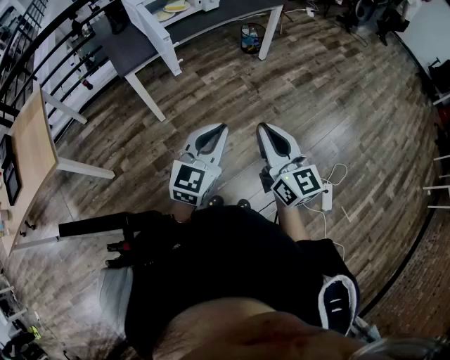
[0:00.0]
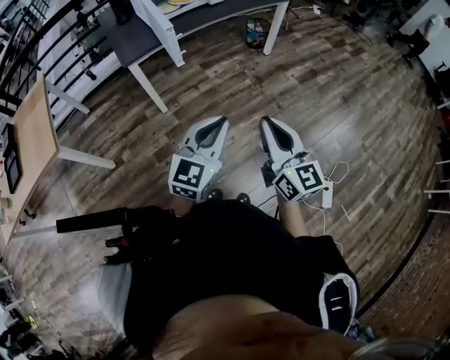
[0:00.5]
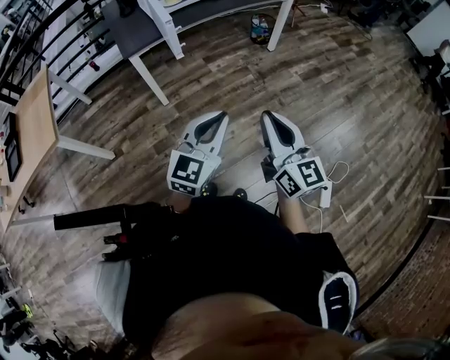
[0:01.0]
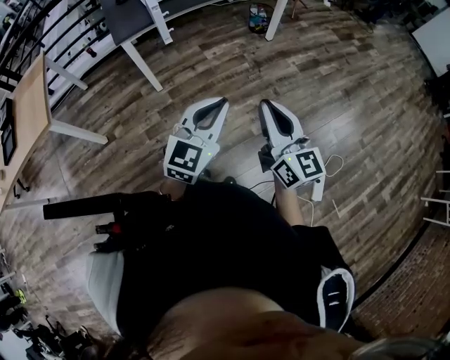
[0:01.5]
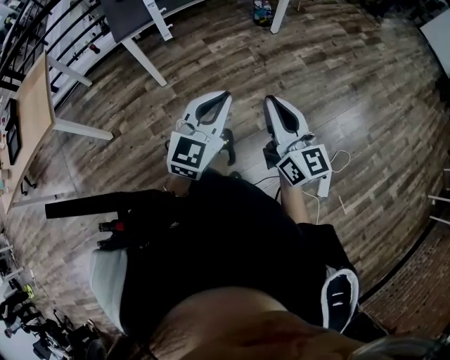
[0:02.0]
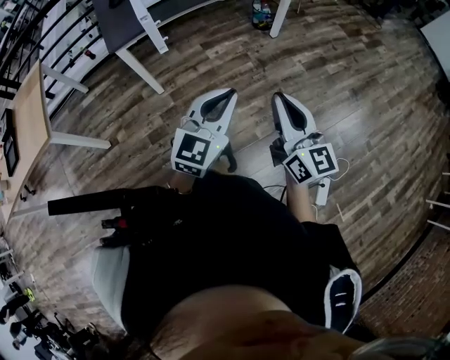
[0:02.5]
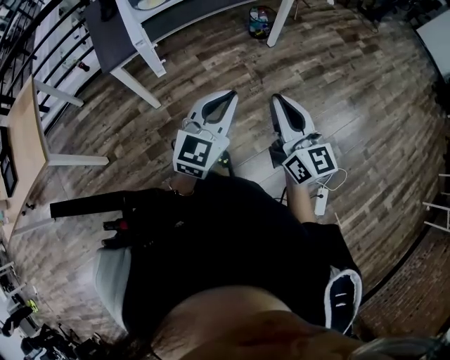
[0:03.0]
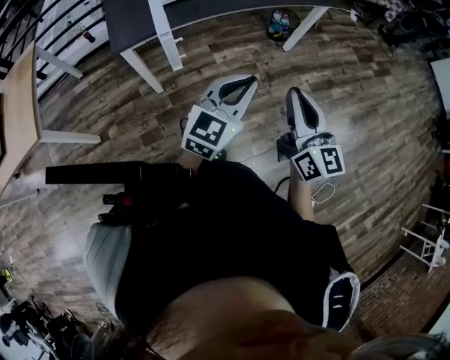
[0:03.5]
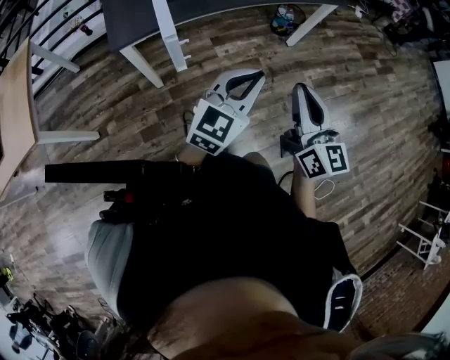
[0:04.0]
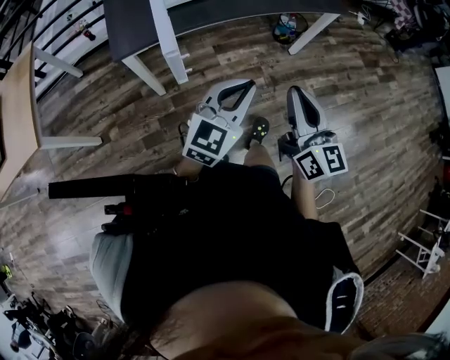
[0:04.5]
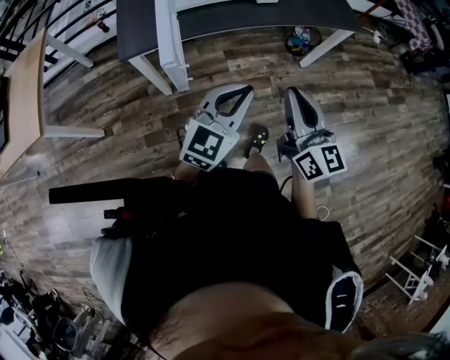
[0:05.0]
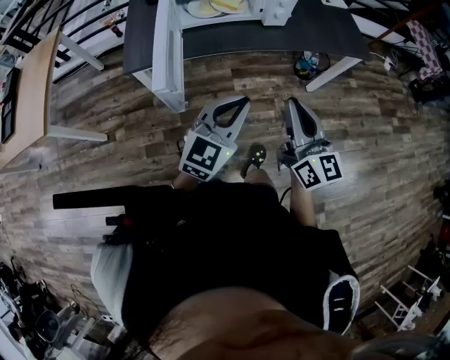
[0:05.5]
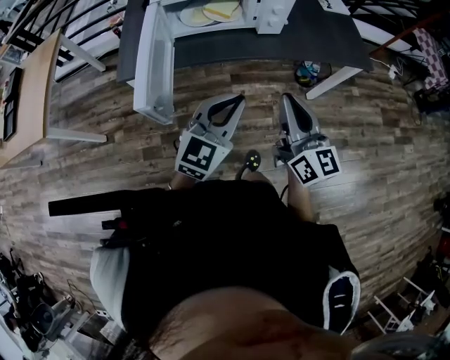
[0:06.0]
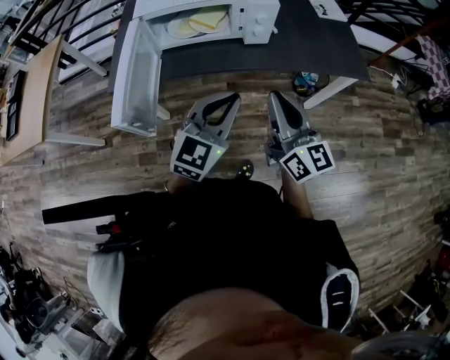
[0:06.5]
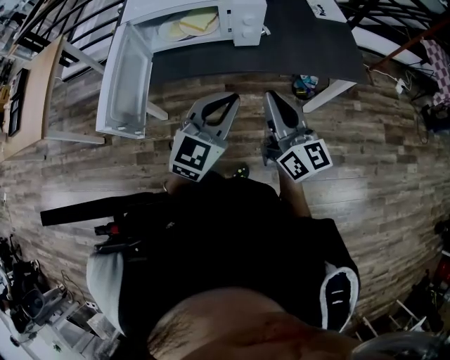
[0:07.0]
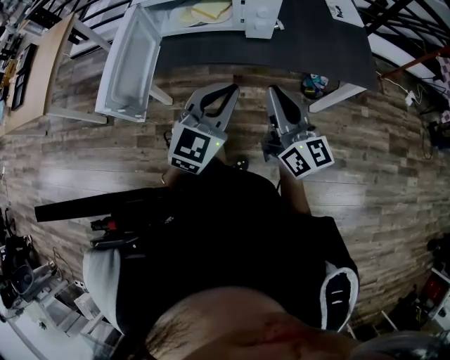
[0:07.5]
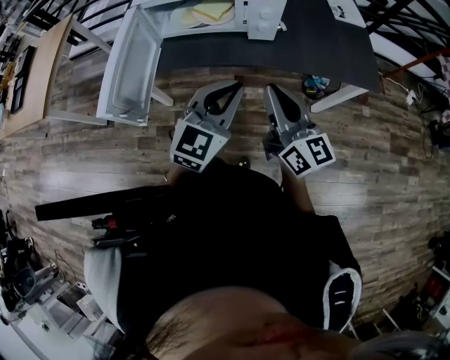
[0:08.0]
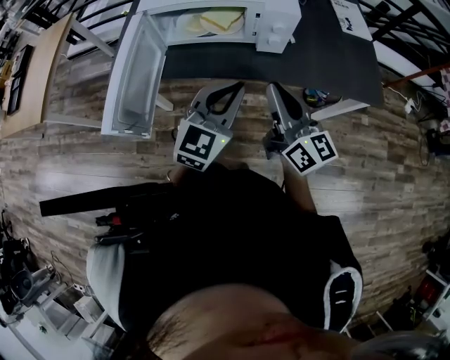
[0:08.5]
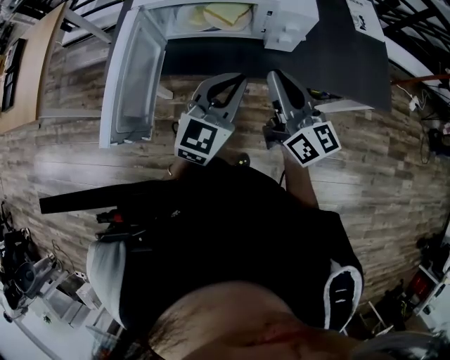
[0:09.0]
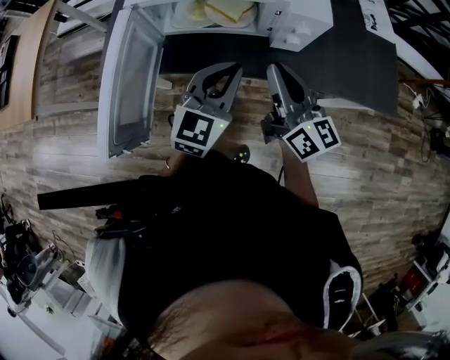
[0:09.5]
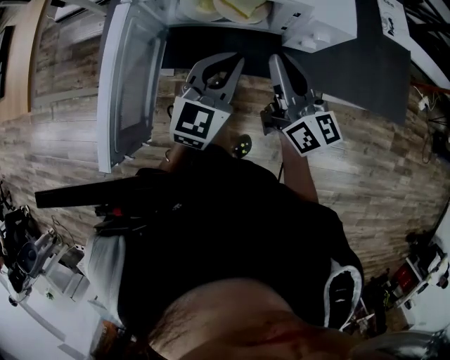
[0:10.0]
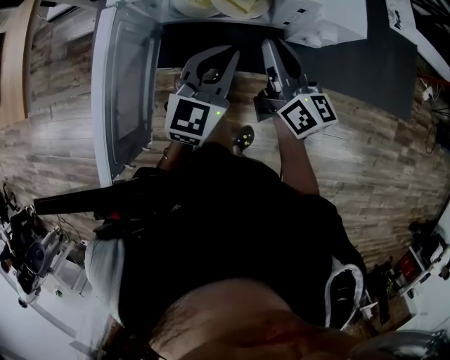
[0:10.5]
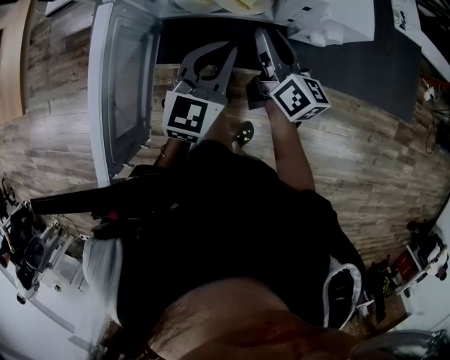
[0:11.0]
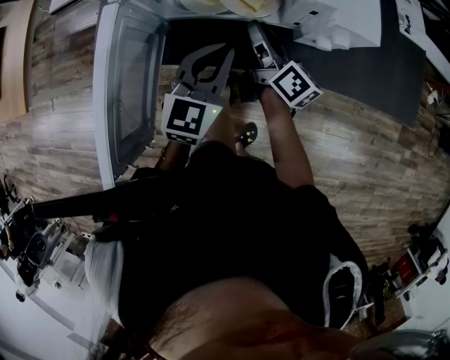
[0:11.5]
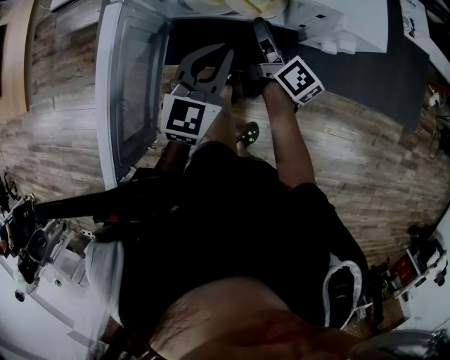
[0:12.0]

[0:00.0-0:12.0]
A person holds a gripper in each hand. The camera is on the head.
0:00.0 to 0:02.0: The grippers both shift to the right by some 10 cm.
0:02.0 to 0:04.0: The two grippers go some 30 cm forward.
0:04.0 to 0:06.0: Both grippers move forward, some 20 cm. The right gripper swivels approximately 20 degrees, while the left gripper turns by some 20 degrees.
0:06.0 to 0:08.0: The left gripper shifts about 15 cm to the right and forward. Meanwhile the right gripper moves forward and to the right, roughly 10 cm.
0:08.0 to 0:10.0: The right gripper travels forward by roughly 20 cm. The left gripper is displaced forward and to the left by some 20 cm.
0:10.0 to 0:12.0: The left gripper changes place by approximately 5 cm, while the right gripper moves downward and forward, about 15 cm, turns by approximately 40 degrees, and opens its fingers.

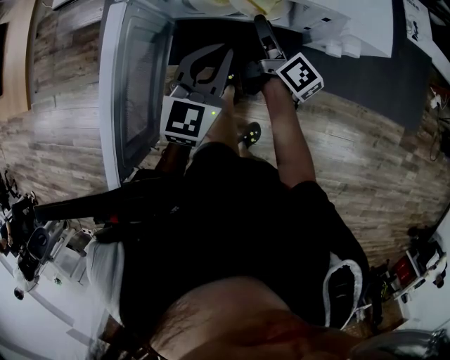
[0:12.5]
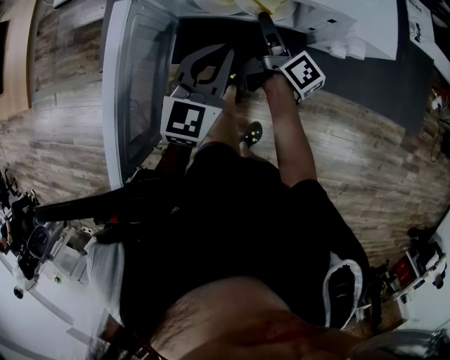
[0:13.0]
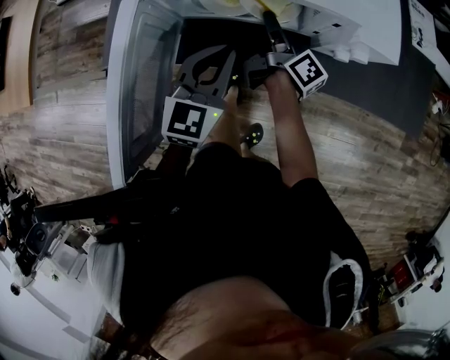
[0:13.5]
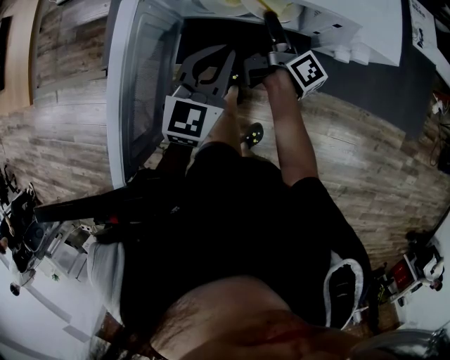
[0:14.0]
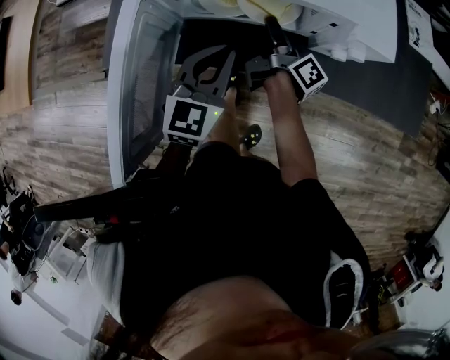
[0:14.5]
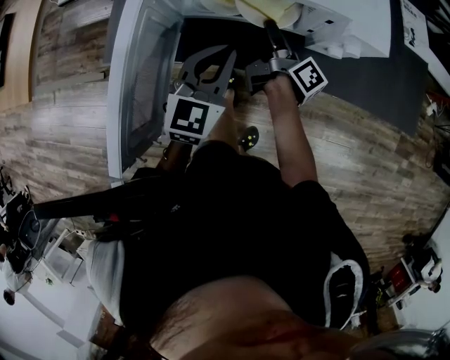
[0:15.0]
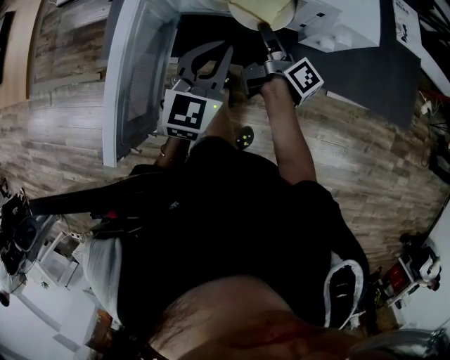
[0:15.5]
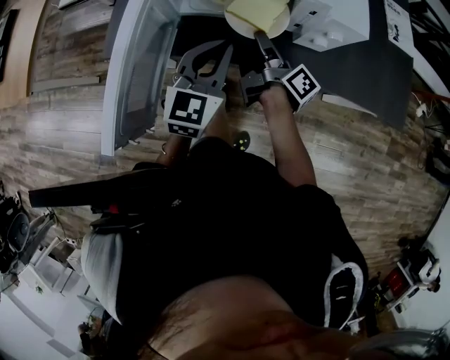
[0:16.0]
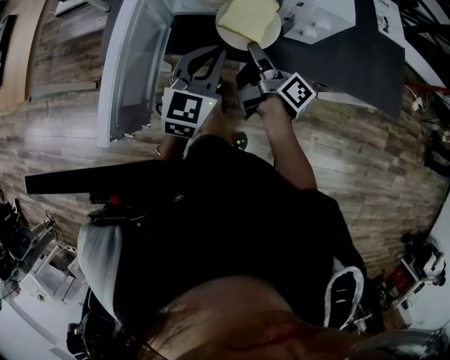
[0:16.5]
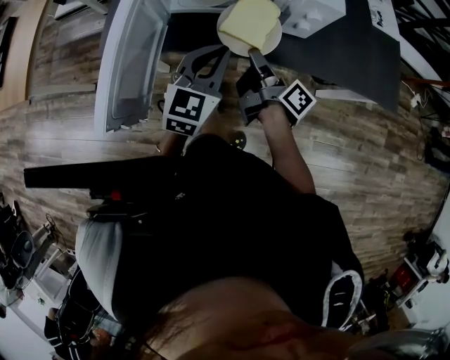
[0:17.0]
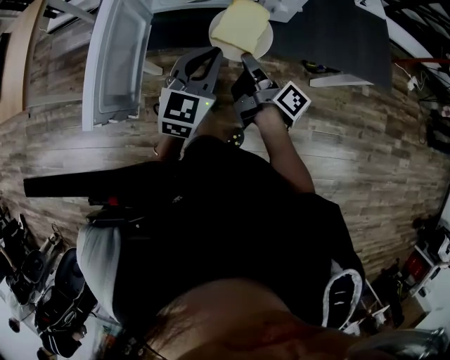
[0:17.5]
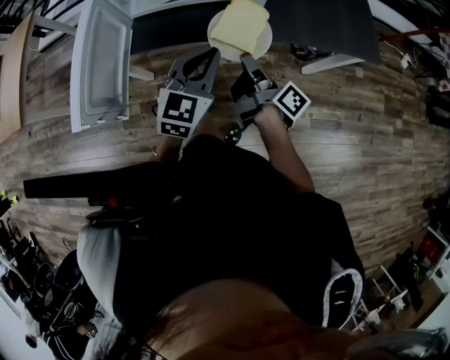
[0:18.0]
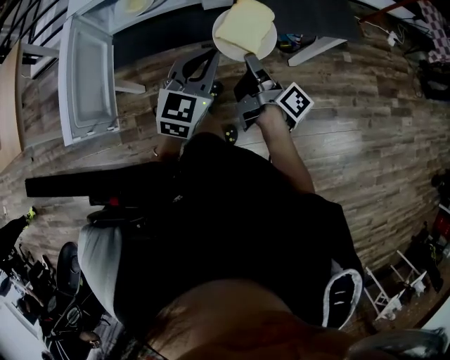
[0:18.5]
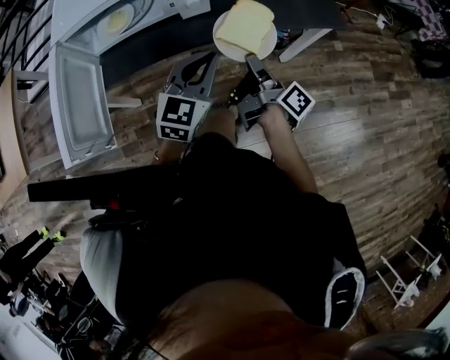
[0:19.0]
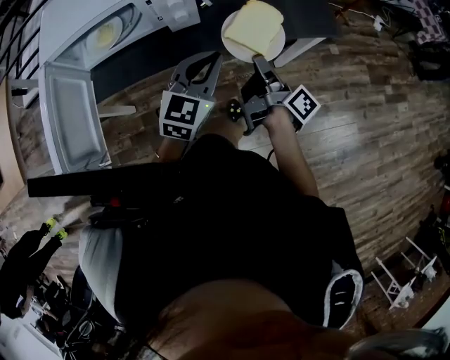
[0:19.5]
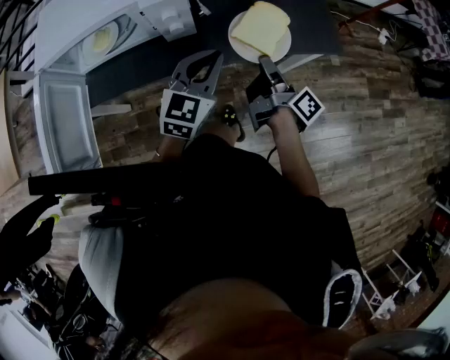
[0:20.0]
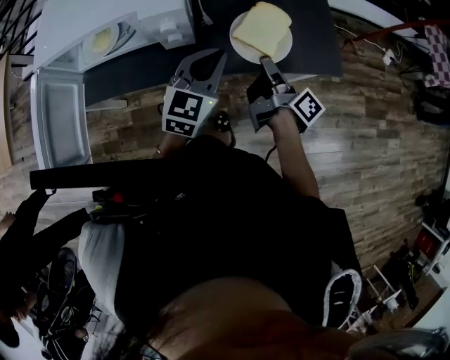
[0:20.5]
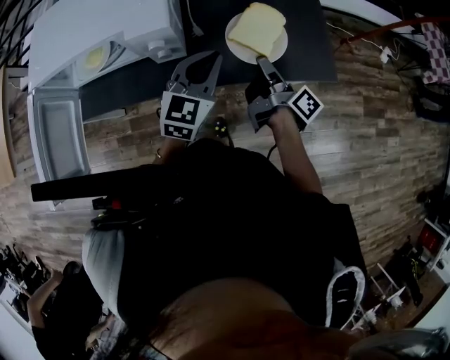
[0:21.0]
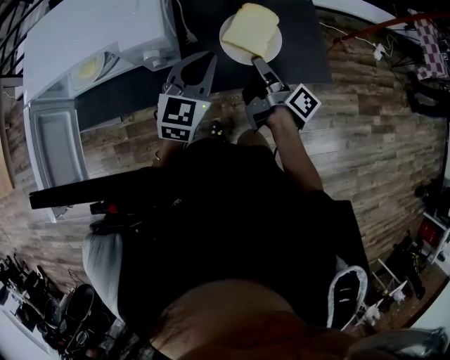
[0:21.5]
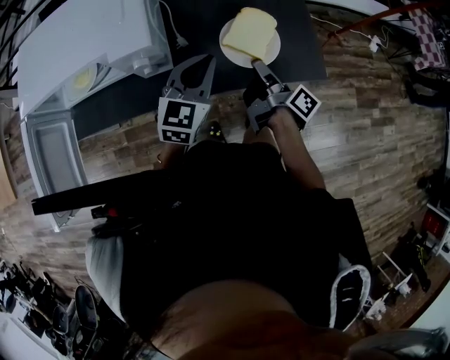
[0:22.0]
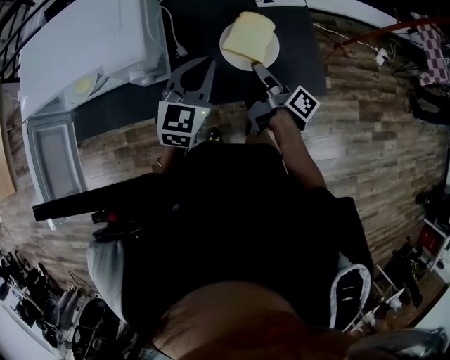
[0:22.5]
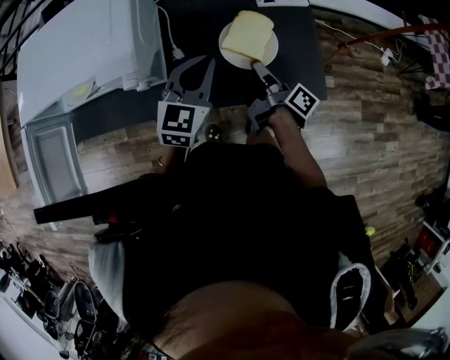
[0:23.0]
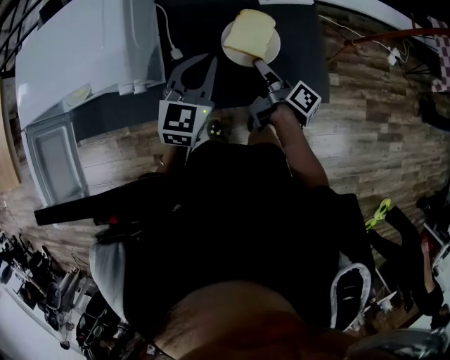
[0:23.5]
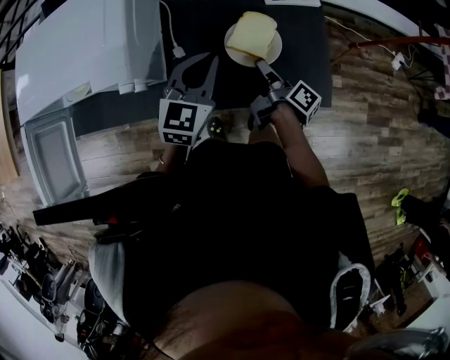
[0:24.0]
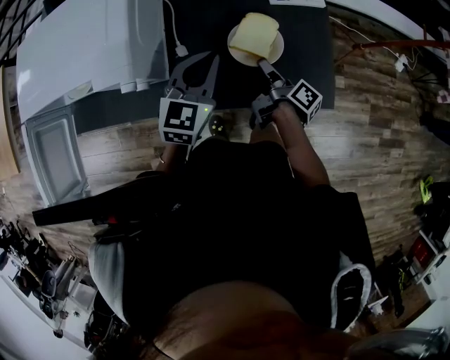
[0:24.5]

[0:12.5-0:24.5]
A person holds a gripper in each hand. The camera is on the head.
0:12.5 to 0:14.5: The right gripper closes its fingers.
0:14.5 to 0:16.5: The right gripper goes approximately 10 cm backward. Meanwhile the left gripper moves backward, about 5 cm.
0:16.5 to 0:18.5: The grippers both shift to the right and backward by about 20 cm.
0:18.5 to 0:20.5: Both grippers travel together forward and to the right, approximately 20 cm.
0:20.5 to 0:22.5: The two grippers go approximately 10 cm forward.
0:22.5 to 0:24.5: The right gripper is displaced downward by roughly 5 cm, while the left gripper moves roughly 5 cm.

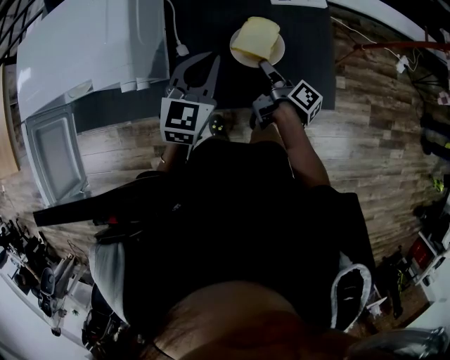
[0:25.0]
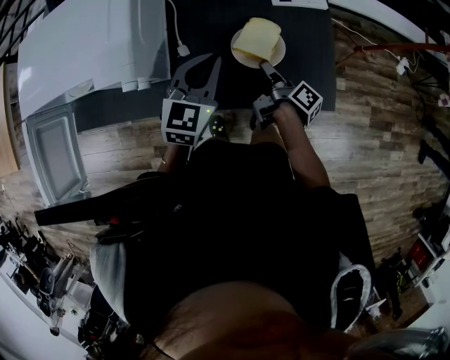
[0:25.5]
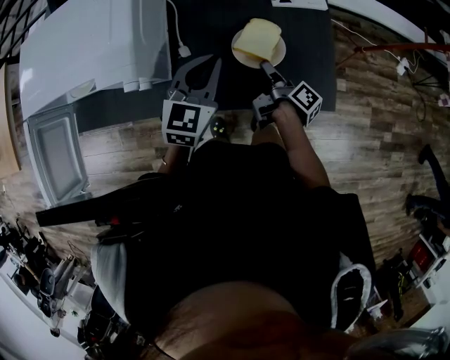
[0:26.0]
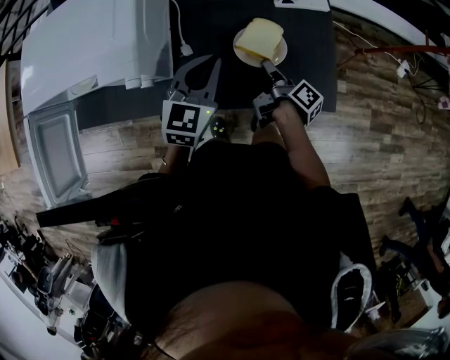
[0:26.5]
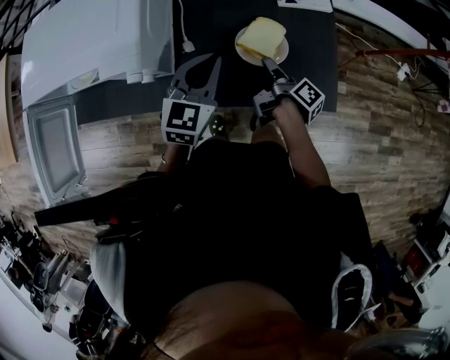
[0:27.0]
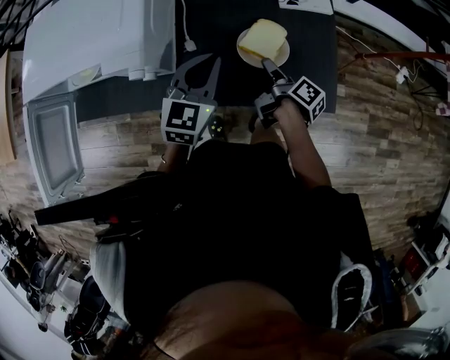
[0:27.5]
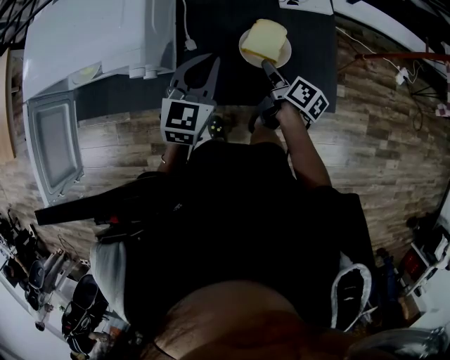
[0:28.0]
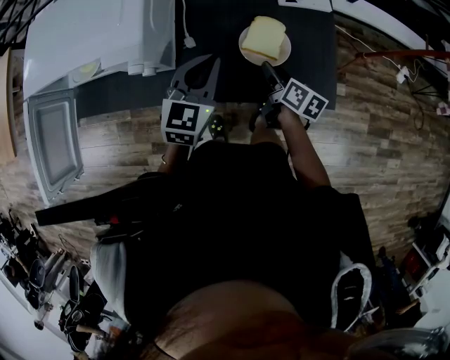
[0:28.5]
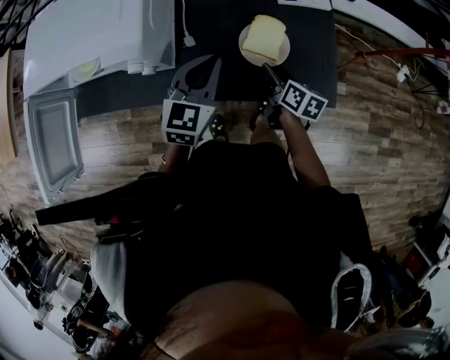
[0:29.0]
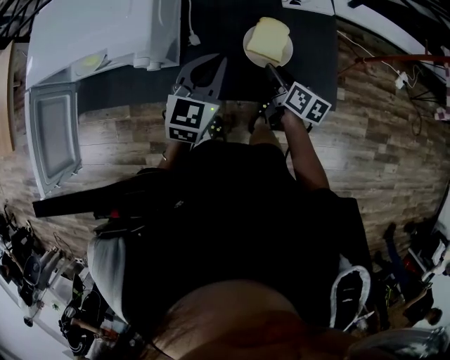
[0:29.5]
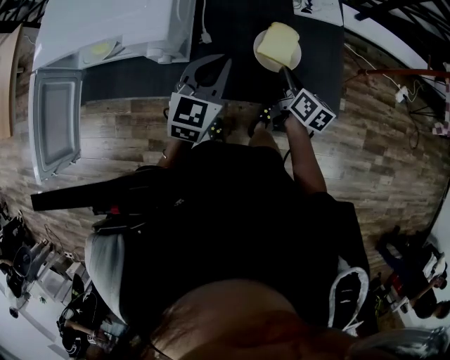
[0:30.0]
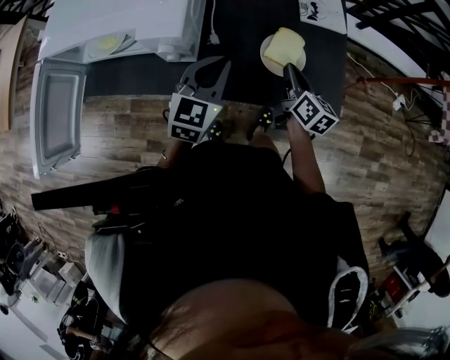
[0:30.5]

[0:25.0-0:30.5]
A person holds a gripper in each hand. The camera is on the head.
0:25.0 to 0:27.0: Neither gripper changes place.
0:27.0 to 0:28.5: The right gripper twists about 40 degrees counterclockwise, seen from behind, and opens its fingers.
0:28.5 to 0:30.5: The right gripper moves upward, roughly 10 cm, and closes. The left gripper moves about 5 cm.
